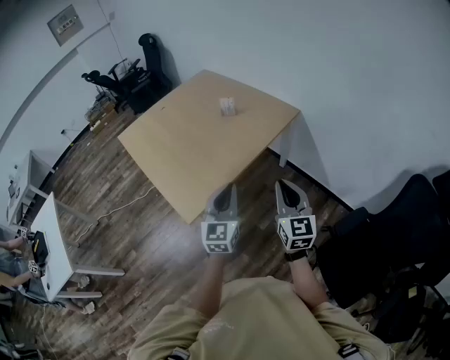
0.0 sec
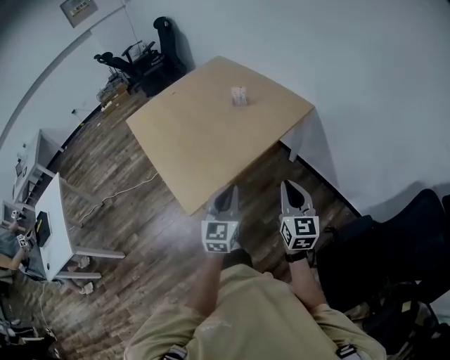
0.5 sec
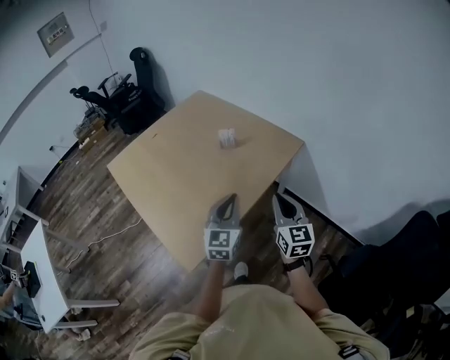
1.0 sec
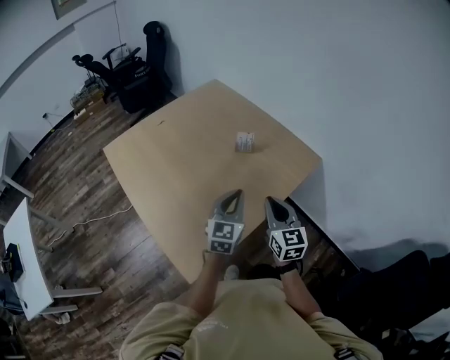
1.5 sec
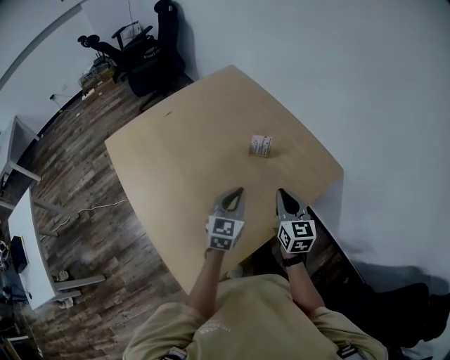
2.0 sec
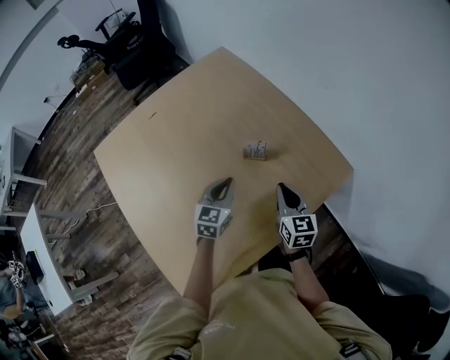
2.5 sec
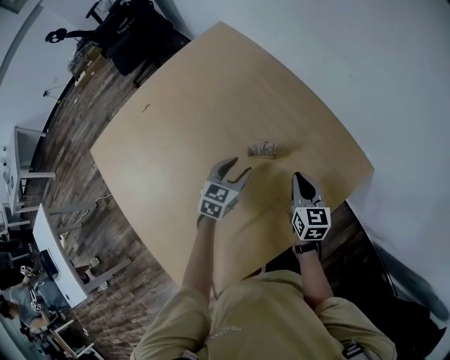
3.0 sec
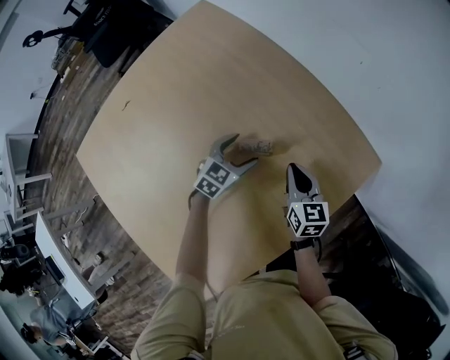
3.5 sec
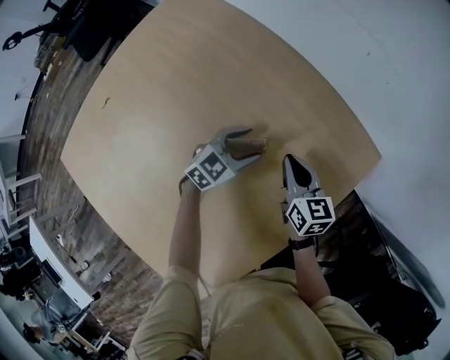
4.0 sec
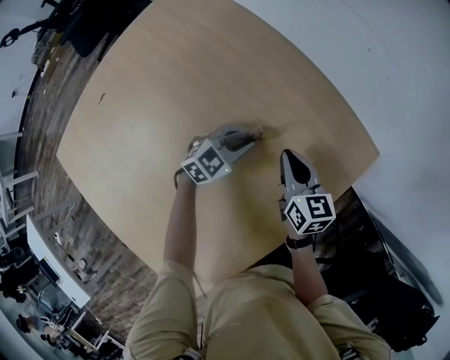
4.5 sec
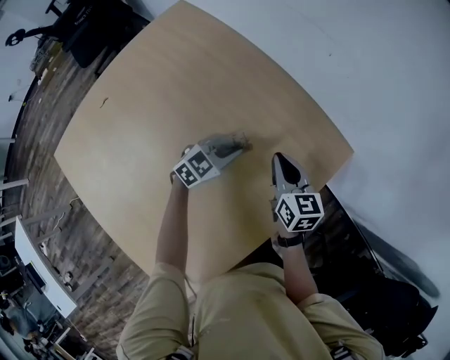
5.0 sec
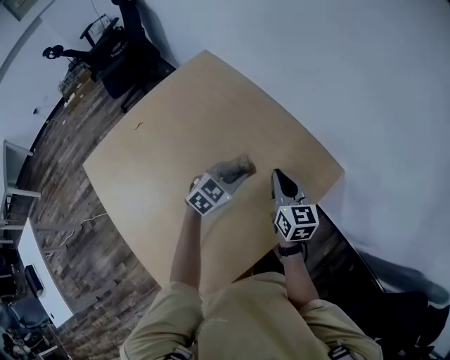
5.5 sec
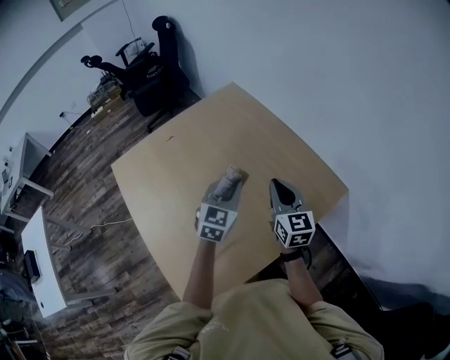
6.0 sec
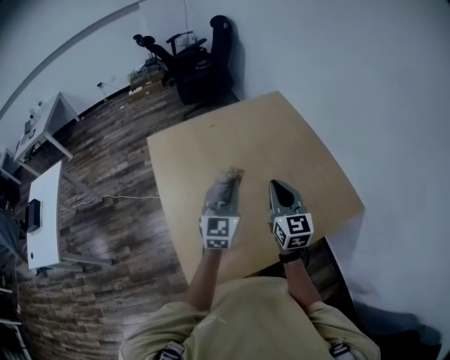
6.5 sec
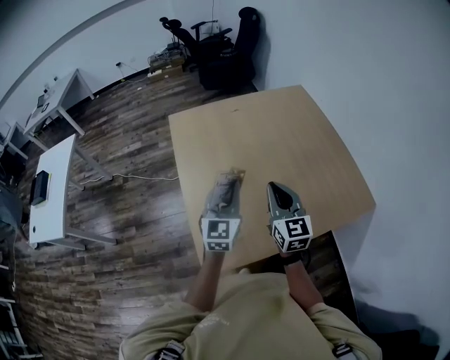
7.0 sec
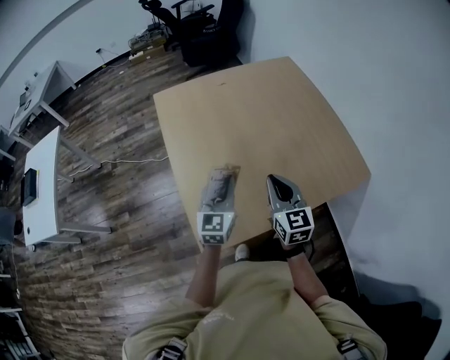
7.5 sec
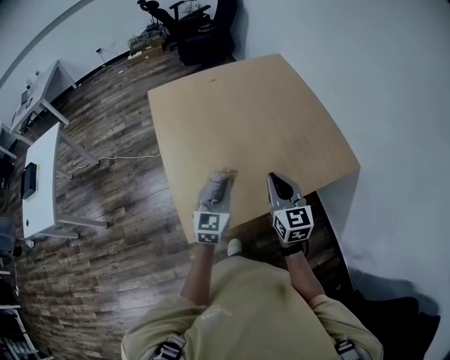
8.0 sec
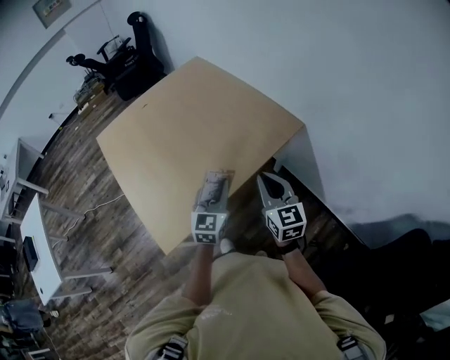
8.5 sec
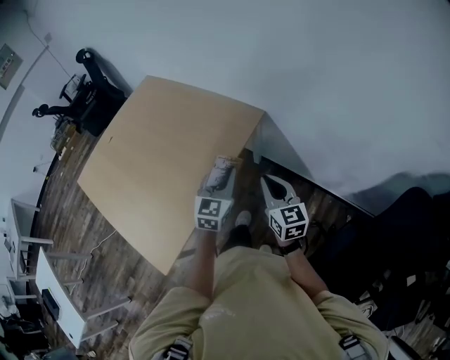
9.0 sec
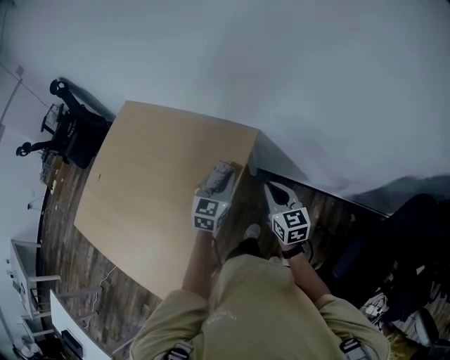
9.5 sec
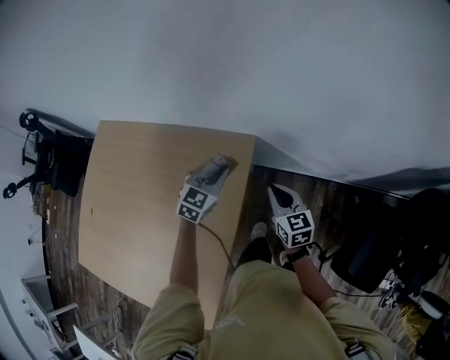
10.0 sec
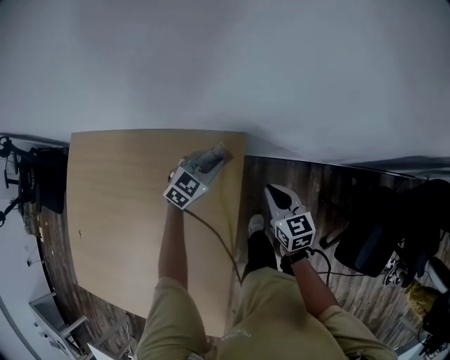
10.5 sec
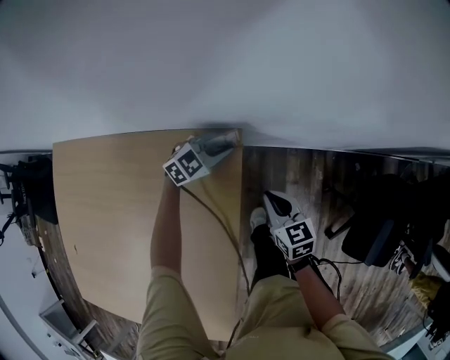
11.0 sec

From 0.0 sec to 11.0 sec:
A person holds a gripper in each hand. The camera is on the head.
From 0.0 sec to 2.0 sec: The two grippers travel together, forward, roughly 50 cm.
From 2.0 sec to 3.5 sec: Both grippers move forward and downward, approximately 35 cm. The left gripper rotates some 40 degrees, and opens its fingers.
From 3.5 sec to 5.5 sec: The right gripper goes roughly 15 cm upward, while the left gripper shifts roughly 20 cm upward, backward and to the right, and closes its fingers.
From 5.5 sec to 7.5 sec: The right gripper changes place by some 40 cm, and turns by some 30 degrees. Meanwhile the left gripper moves some 50 cm, and swivels approximately 70 degrees.
From 7.5 sec to 9.0 sec: The pair of grippers is taken roughly 50 cm. The left gripper changes its angle by roughly 50 degrees, while the right gripper changes its angle by about 40 degrees.
From 9.0 sec to 11.0 sec: The right gripper moves roughly 40 cm, and turns by approximately 30 degrees. Meanwhile the left gripper moves some 50 cm, and changes its angle by about 80 degrees.

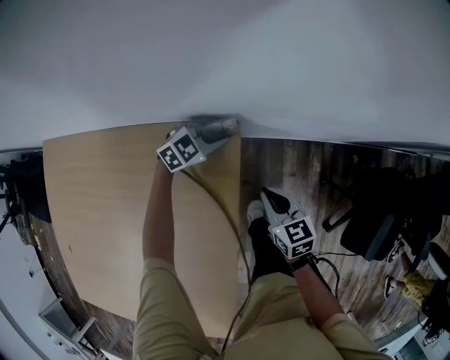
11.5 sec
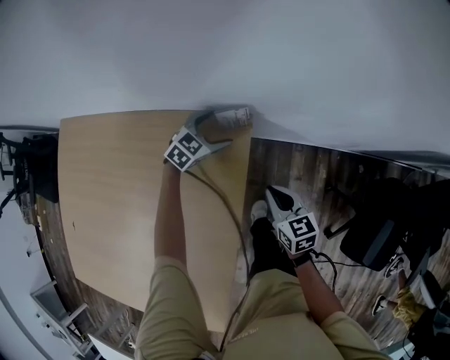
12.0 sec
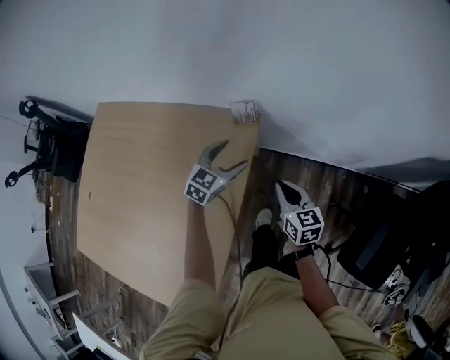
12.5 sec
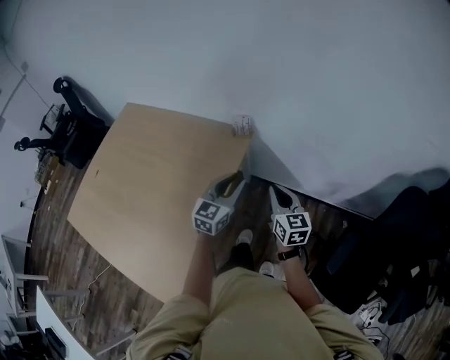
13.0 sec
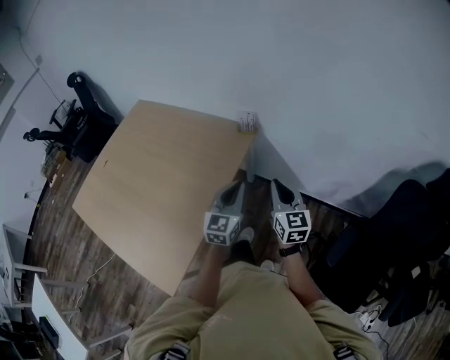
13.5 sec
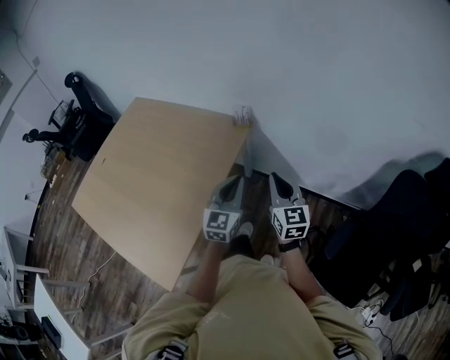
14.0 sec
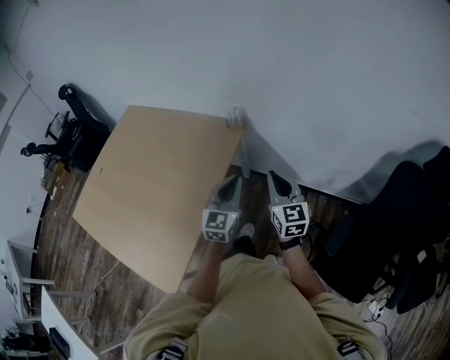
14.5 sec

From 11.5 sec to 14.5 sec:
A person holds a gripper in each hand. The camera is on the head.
From 11.5 sec to 13.0 sec: The left gripper moves approximately 50 cm, turns by some 60 degrees, and opens, then closes once more. The right gripper is displaced upward by roughly 25 cm, and changes its angle by some 20 degrees.
From 13.0 sec to 14.5 sec: The right gripper is displaced backward and upward by roughly 10 cm. Meanwhile the left gripper travels backward by about 10 cm.

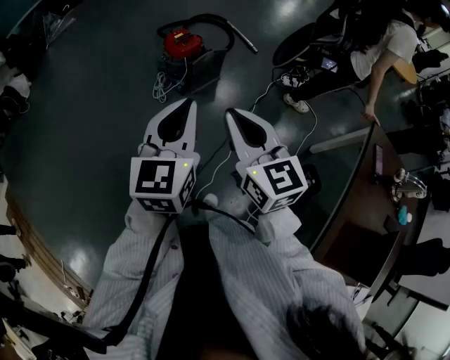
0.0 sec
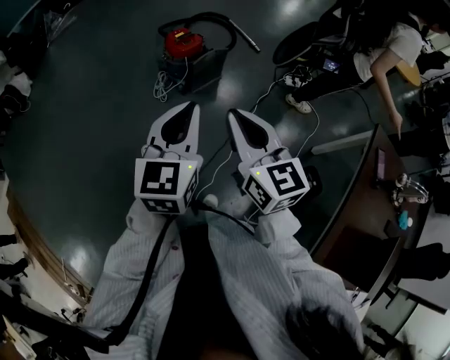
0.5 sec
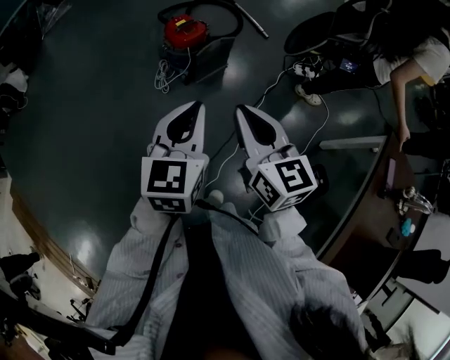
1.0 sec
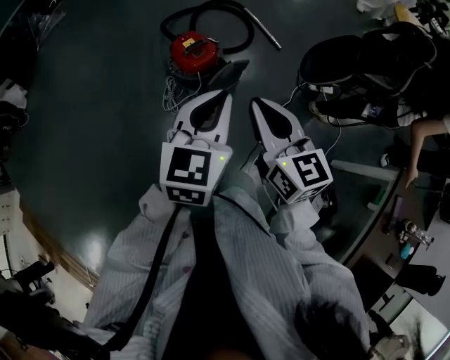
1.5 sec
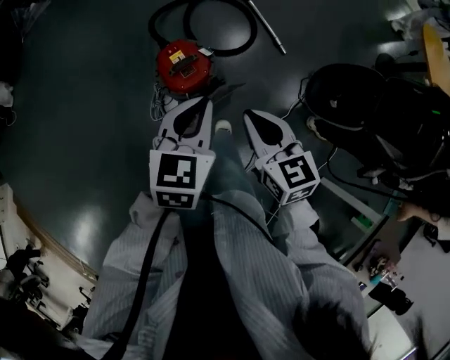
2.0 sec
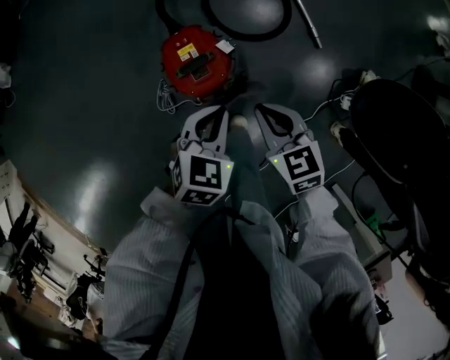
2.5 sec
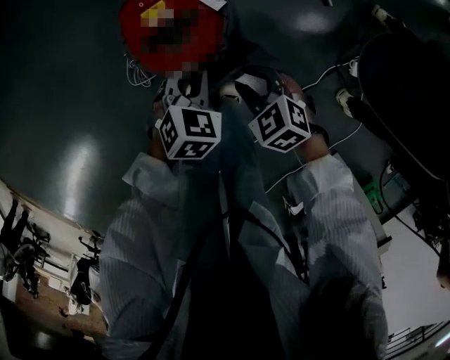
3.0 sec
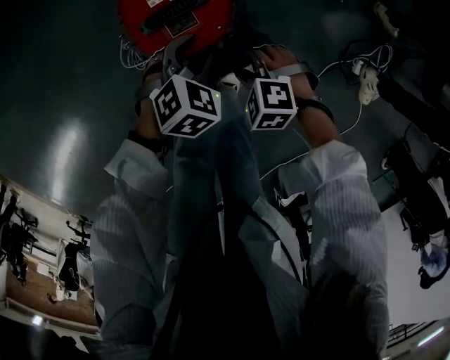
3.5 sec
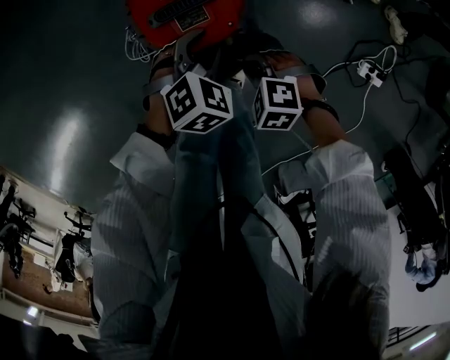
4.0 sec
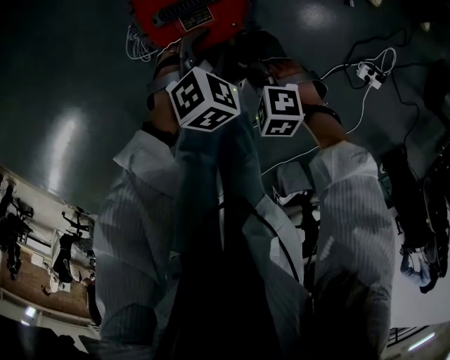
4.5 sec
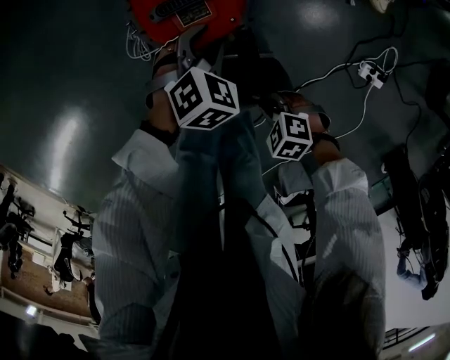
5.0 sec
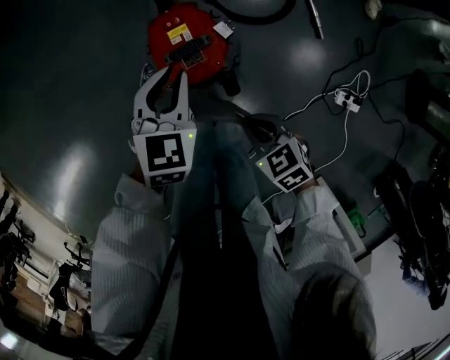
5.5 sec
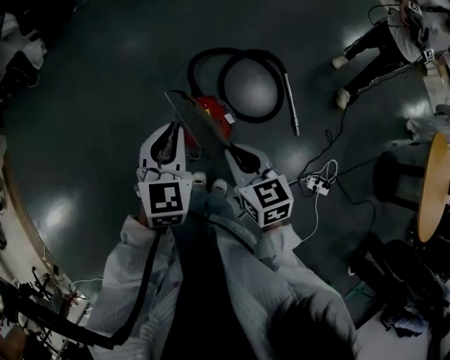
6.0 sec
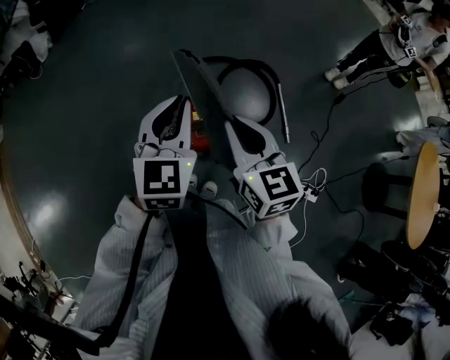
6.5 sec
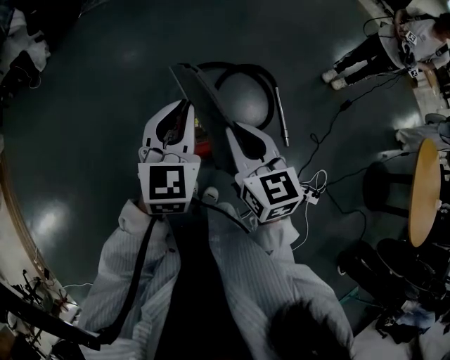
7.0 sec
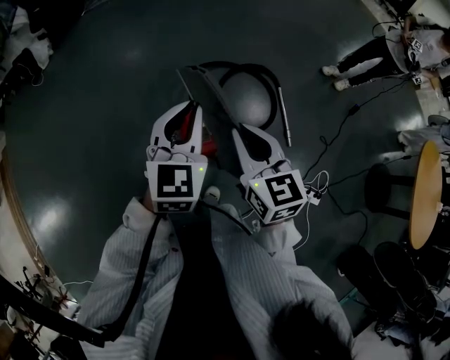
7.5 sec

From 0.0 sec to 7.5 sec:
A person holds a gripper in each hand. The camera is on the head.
From 0.0 sec to 2.0 sec: The pair of grippers is taken forward, some 60 cm. The left gripper rotates some 20 degrees; the right gripper changes its angle by roughly 20 degrees.
From 2.0 sec to 4.0 sec: Both grippers travel together downward, some 50 cm. The left gripper tips its fingers downward by roughly 30 degrees, and opens up. Meanwhile the right gripper tilts its fingers about 50 degrees downward, and opens, then closes once more.
From 4.0 sec to 5.5 sec: Both grippers travel together upward, approximately 20 cm. The left gripper turns by some 40 degrees, and closes up, while the right gripper twists approximately 40 degrees clockwise, seen from behind.
From 5.5 sec to 7.5 sec: Both grippers move upward, about 50 cm. The left gripper rotates roughly 30 degrees; the right gripper tilts its fingers roughly 40 degrees upward.

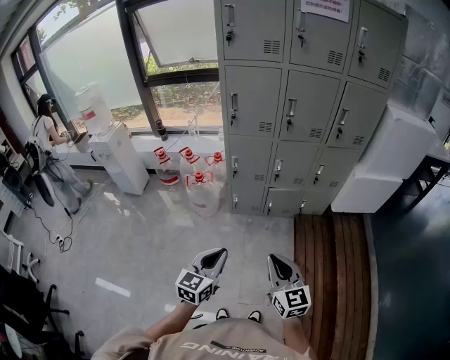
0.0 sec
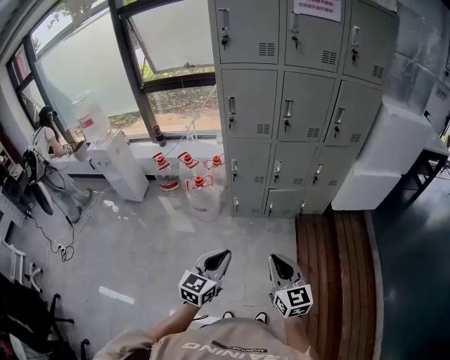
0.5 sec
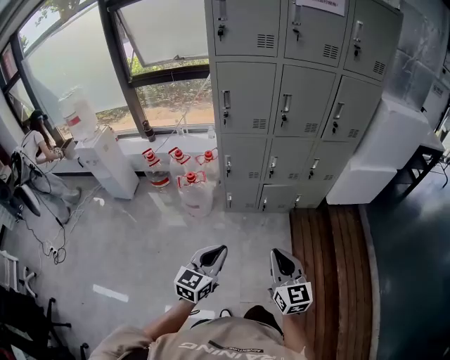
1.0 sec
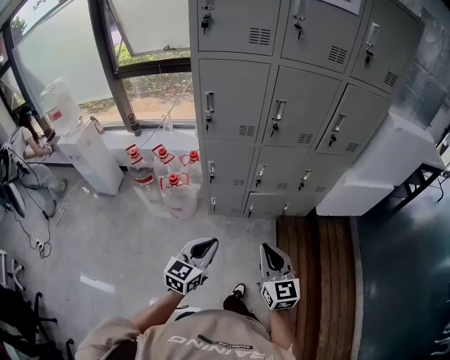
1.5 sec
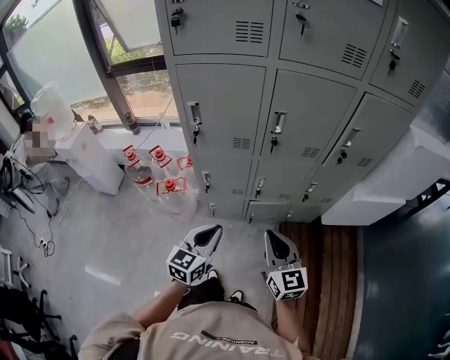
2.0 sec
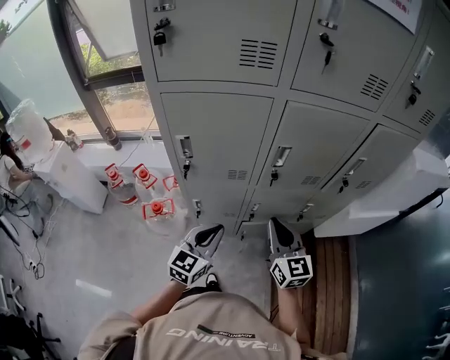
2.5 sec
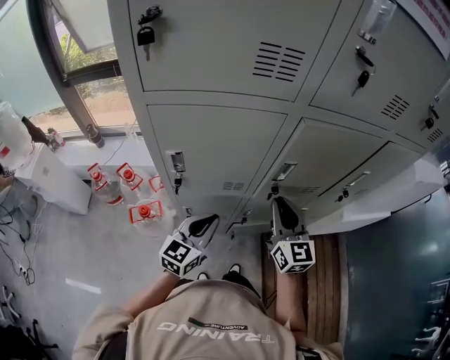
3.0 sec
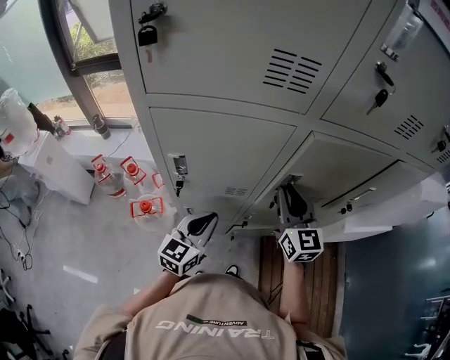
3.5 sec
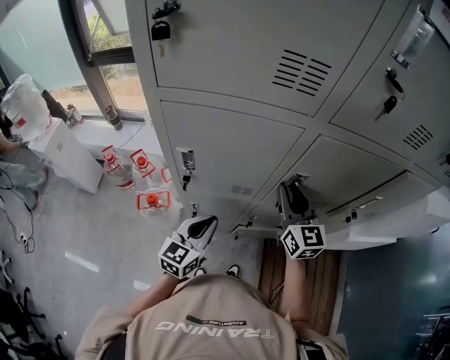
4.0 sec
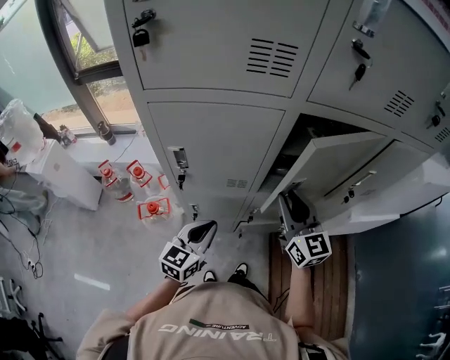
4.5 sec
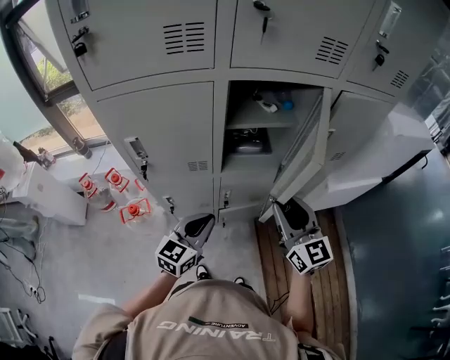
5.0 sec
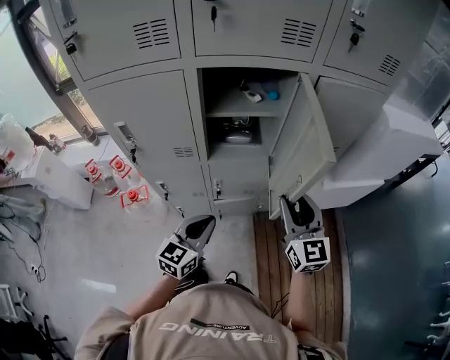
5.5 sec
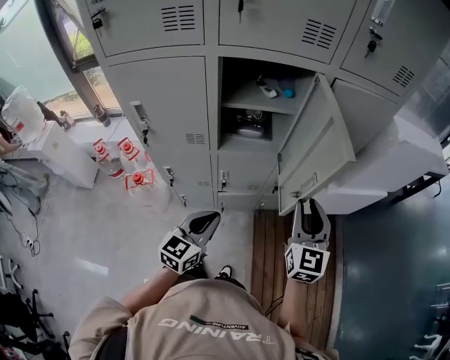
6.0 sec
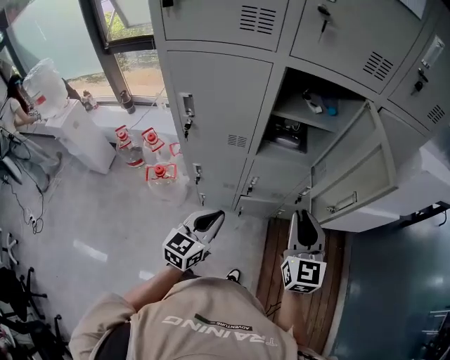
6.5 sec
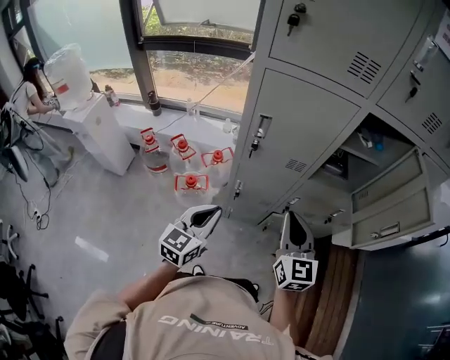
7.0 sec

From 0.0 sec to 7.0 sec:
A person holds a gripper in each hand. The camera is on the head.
From 0.0 sec to 2.0 sec: Both grippers move forward, roughly 35 cm.
From 2.0 sec to 3.5 sec: Both grippers travel together forward, some 30 cm.
From 3.5 sec to 5.0 sec: The left gripper moves to the right and backward, approximately 15 cm, while the right gripper shifts roughly 20 cm backward and to the right.
From 5.0 sec to 7.0 sec: The grippers both shift to the left and backward by roughly 25 cm. The right gripper closes up.
